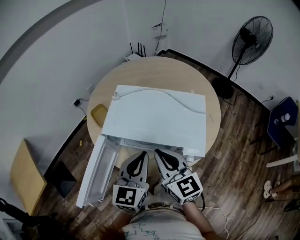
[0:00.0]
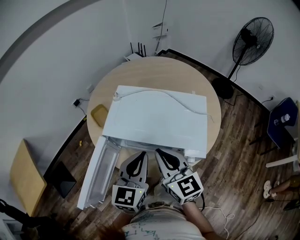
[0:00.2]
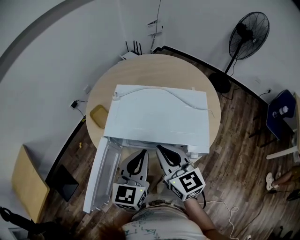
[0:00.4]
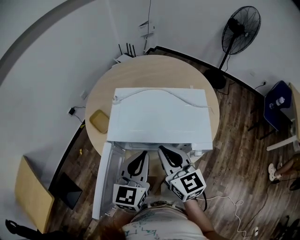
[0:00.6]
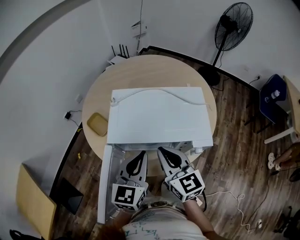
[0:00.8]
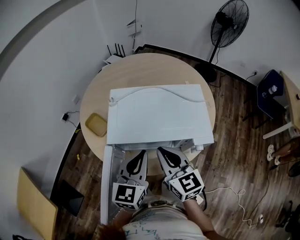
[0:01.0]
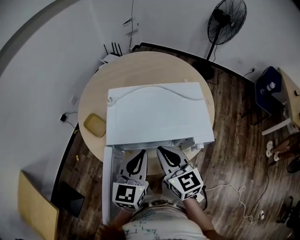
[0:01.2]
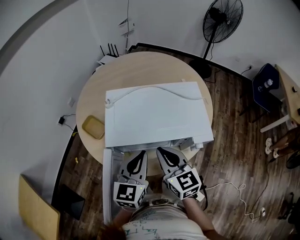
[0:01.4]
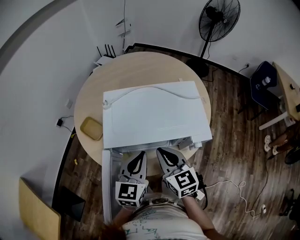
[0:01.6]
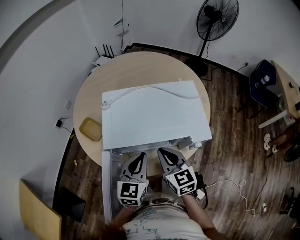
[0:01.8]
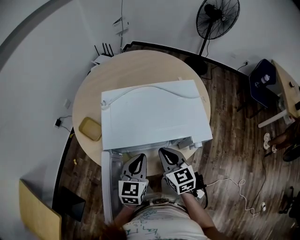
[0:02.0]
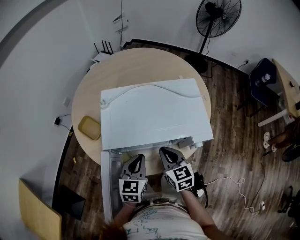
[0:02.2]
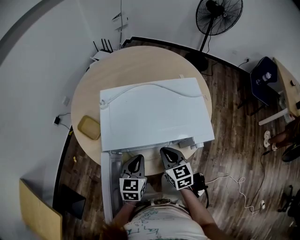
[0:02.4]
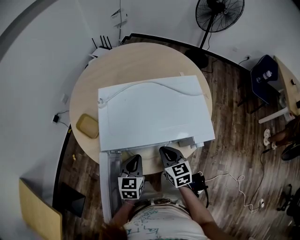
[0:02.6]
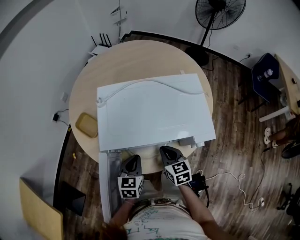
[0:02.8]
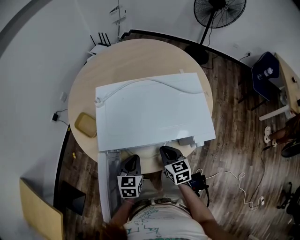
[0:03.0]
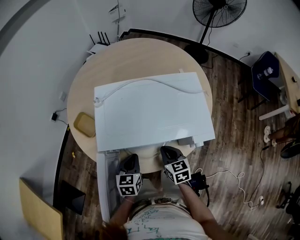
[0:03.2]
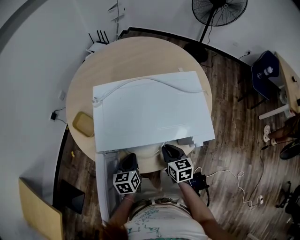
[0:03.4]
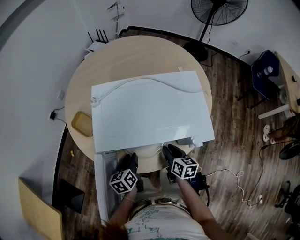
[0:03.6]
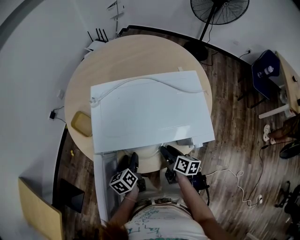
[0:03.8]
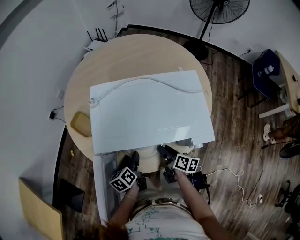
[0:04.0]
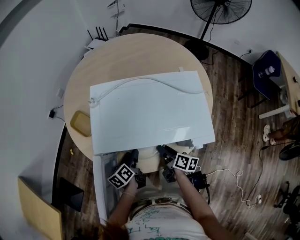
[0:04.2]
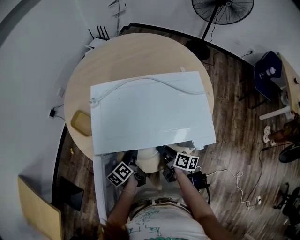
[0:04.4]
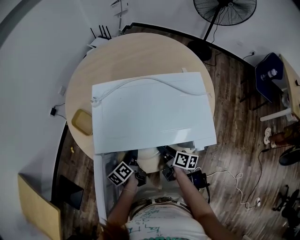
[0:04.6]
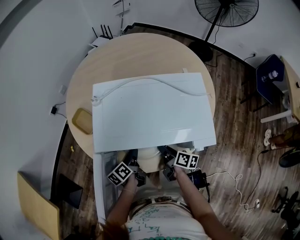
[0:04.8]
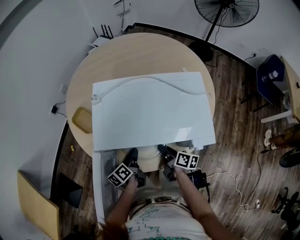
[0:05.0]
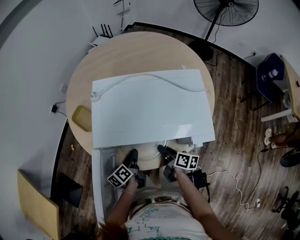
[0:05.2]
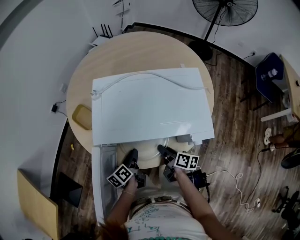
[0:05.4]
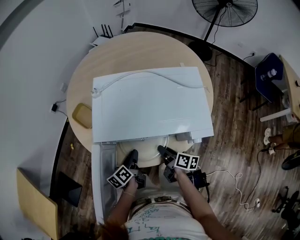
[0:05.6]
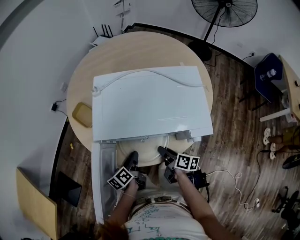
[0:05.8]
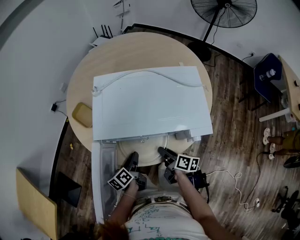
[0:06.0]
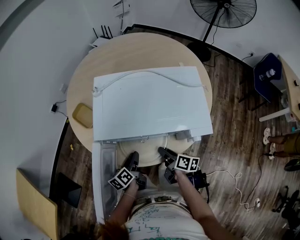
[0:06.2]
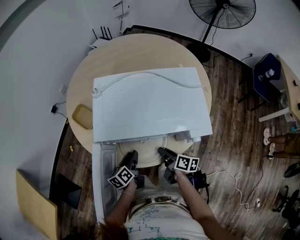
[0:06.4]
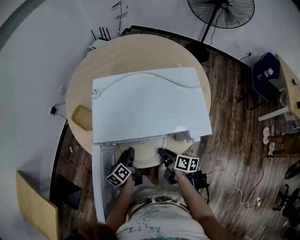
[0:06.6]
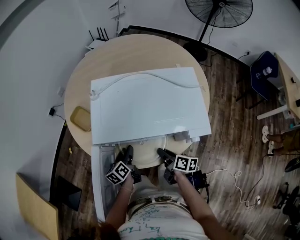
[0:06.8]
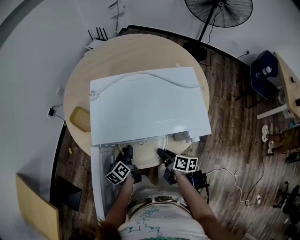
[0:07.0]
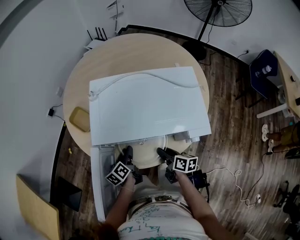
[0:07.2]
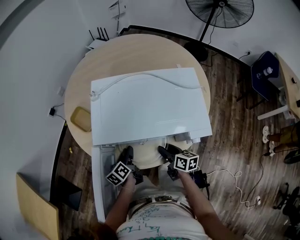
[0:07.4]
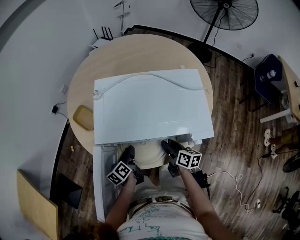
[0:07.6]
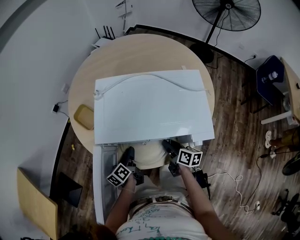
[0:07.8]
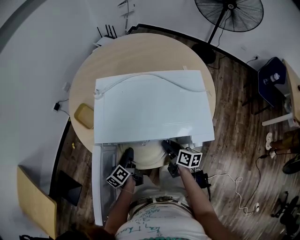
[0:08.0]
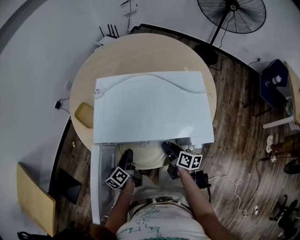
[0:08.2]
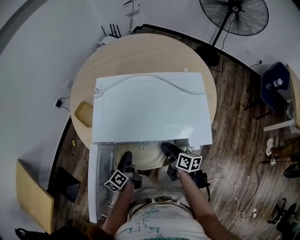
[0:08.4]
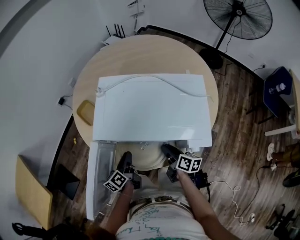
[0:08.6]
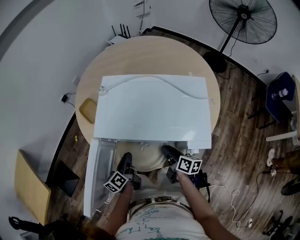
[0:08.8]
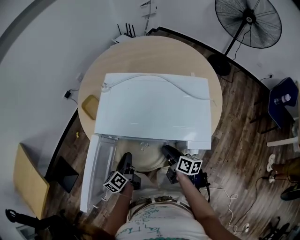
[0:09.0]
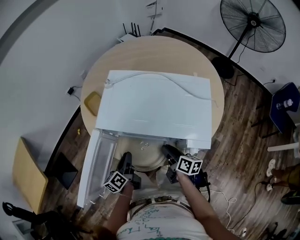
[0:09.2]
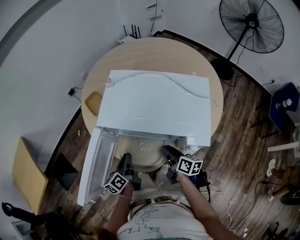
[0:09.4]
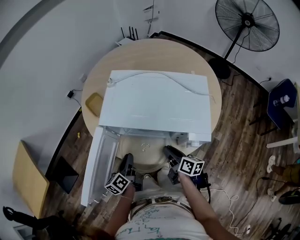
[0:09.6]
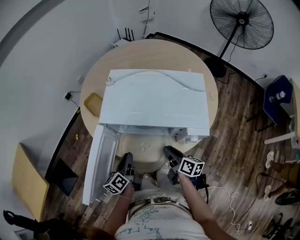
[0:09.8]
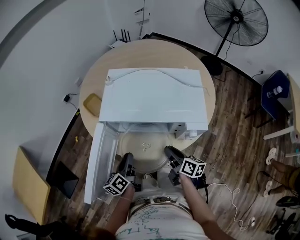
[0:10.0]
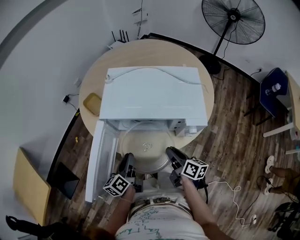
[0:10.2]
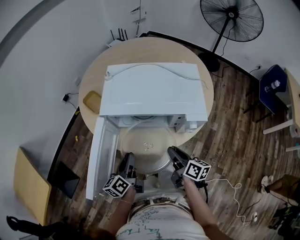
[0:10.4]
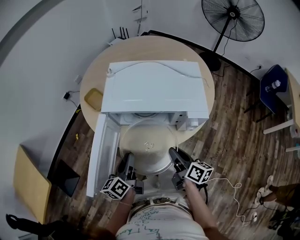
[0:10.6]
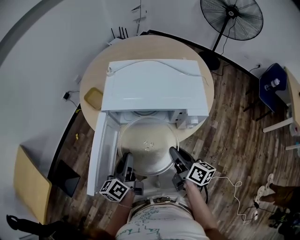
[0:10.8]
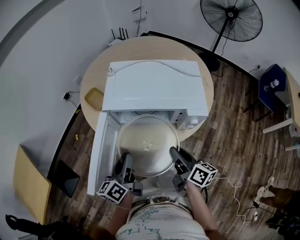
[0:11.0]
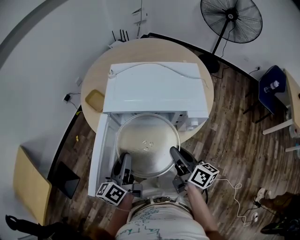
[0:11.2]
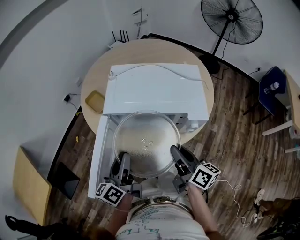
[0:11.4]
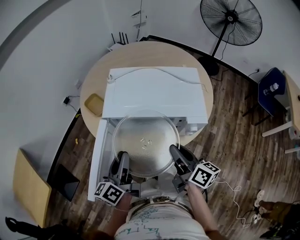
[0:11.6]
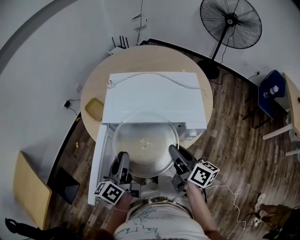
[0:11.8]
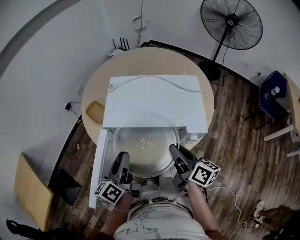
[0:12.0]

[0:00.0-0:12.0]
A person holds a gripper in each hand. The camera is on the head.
0:00.0 to 0:01.6: The left gripper goes some 5 cm to the left and downward; the right gripper shifts approximately 5 cm downward, and rotates about 20 degrees.
0:01.6 to 0:03.0: The grippers both shift downward by roughly 15 cm. The left gripper turns by about 20 degrees.
0:03.0 to 0:04.4: The grippers both shift downward by roughly 5 cm. The left gripper rolls counterclockwise, seen from behind, by approximately 60 degrees, and opens up, while the right gripper twists some 50 degrees clockwise, seen from behind, and opens.
0:04.4 to 0:06.0: Both grippers travel together backward, roughly 5 cm. The left gripper closes up.
0:06.0 to 0:07.6: The right gripper moves approximately 5 cm; the left gripper shifts roughly 5 cm forward.
0:07.6 to 0:09.0: The left gripper shifts approximately 5 cm backward.
0:09.0 to 0:10.4: The left gripper shifts roughly 10 cm upward and backward. Meanwhile the right gripper shifts approximately 15 cm backward and upward.
0:10.4 to 0:12.0: The two grippers go roughly 10 cm upward.

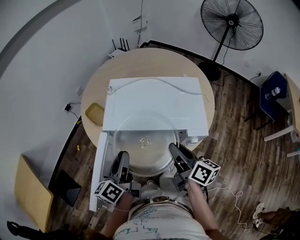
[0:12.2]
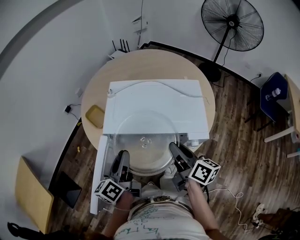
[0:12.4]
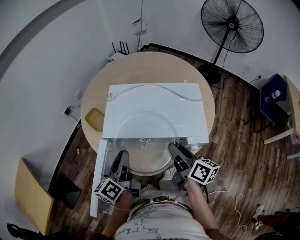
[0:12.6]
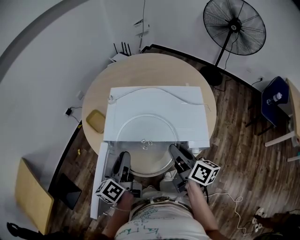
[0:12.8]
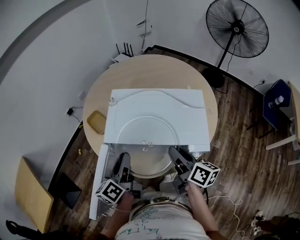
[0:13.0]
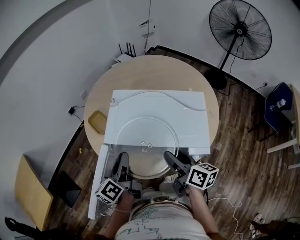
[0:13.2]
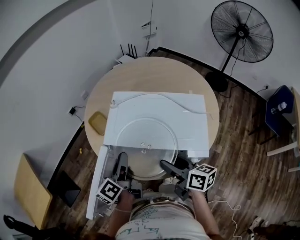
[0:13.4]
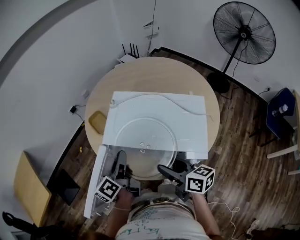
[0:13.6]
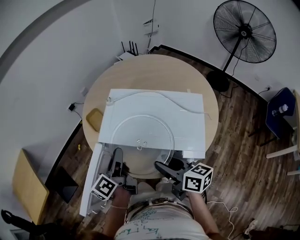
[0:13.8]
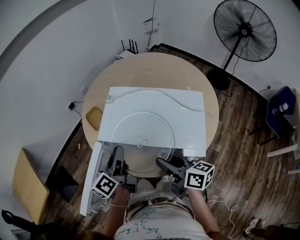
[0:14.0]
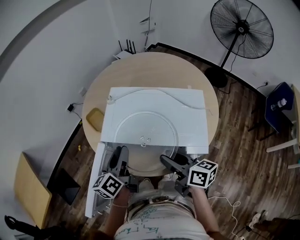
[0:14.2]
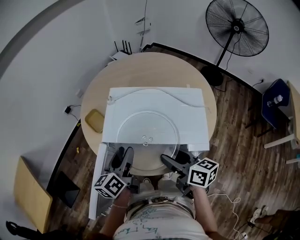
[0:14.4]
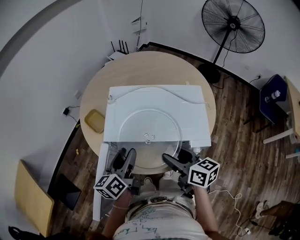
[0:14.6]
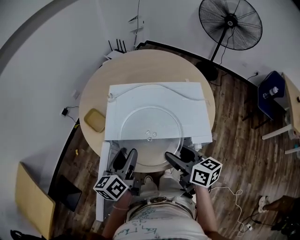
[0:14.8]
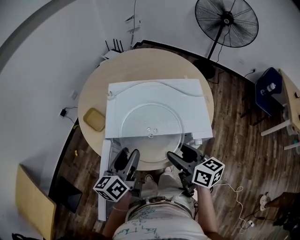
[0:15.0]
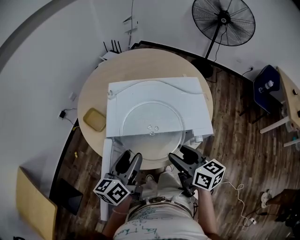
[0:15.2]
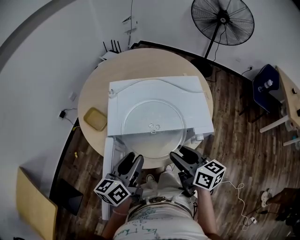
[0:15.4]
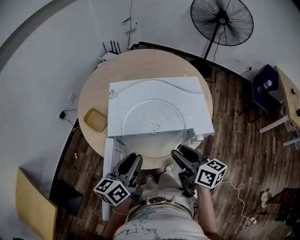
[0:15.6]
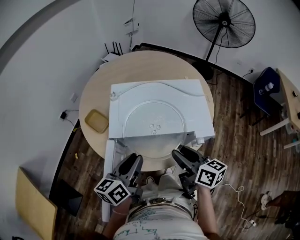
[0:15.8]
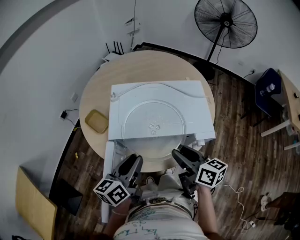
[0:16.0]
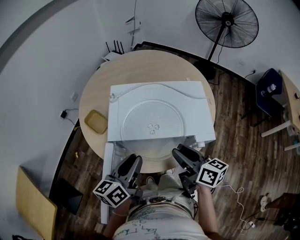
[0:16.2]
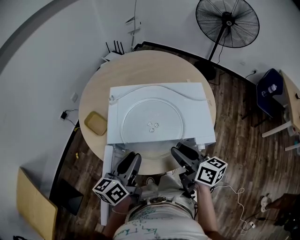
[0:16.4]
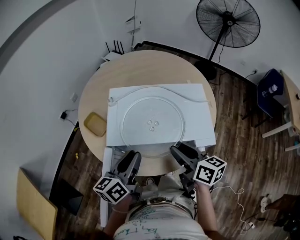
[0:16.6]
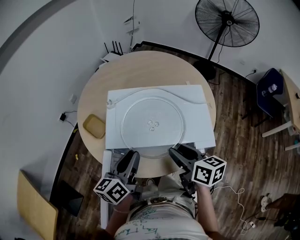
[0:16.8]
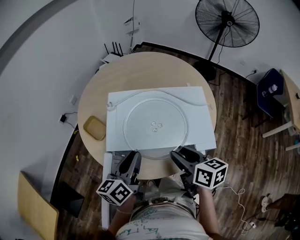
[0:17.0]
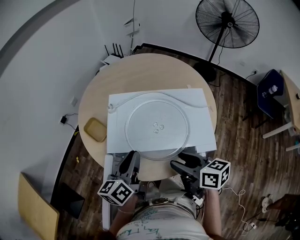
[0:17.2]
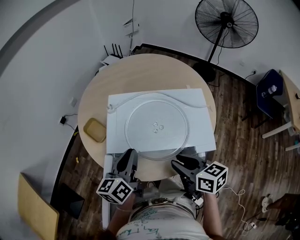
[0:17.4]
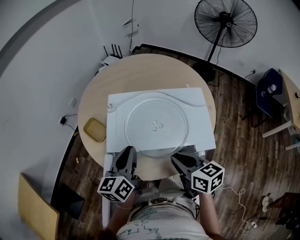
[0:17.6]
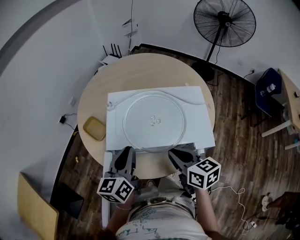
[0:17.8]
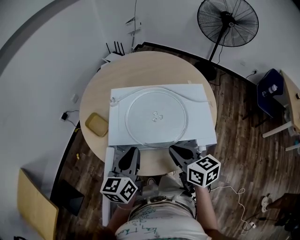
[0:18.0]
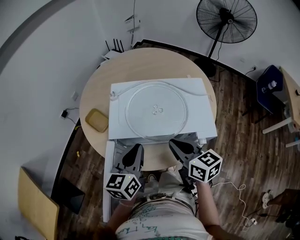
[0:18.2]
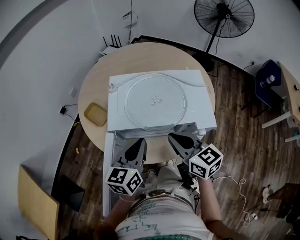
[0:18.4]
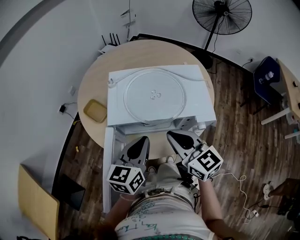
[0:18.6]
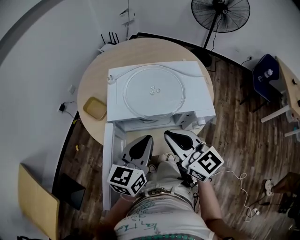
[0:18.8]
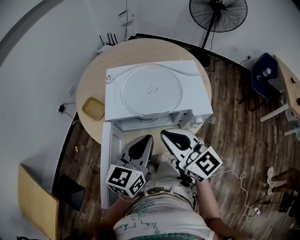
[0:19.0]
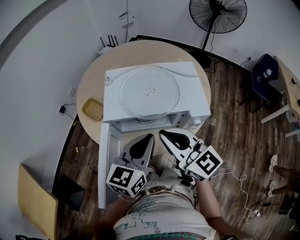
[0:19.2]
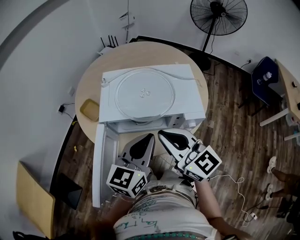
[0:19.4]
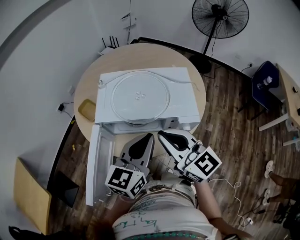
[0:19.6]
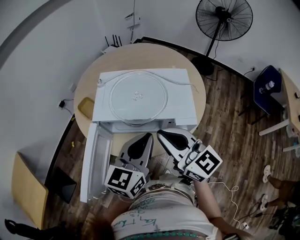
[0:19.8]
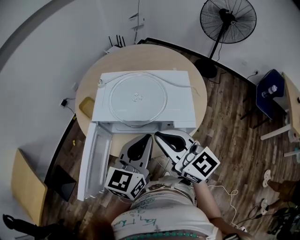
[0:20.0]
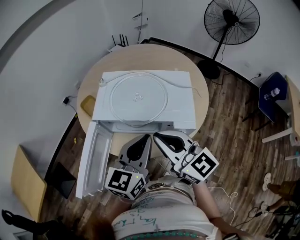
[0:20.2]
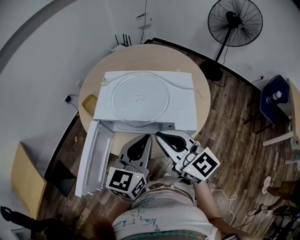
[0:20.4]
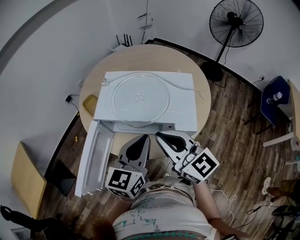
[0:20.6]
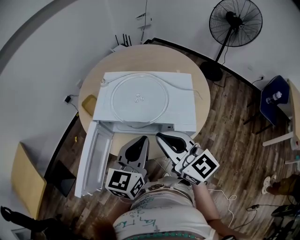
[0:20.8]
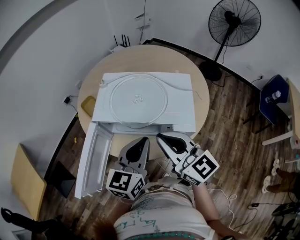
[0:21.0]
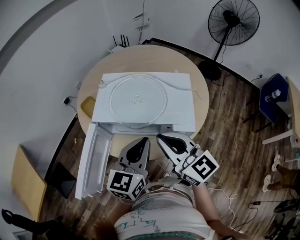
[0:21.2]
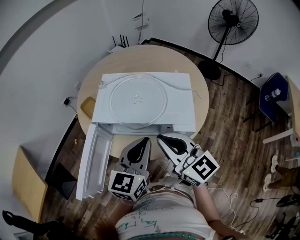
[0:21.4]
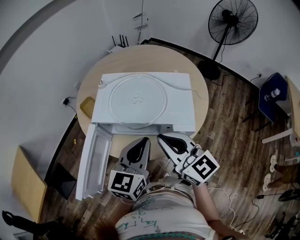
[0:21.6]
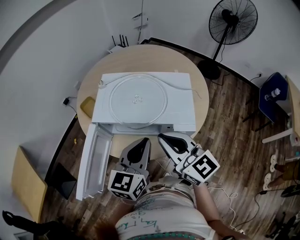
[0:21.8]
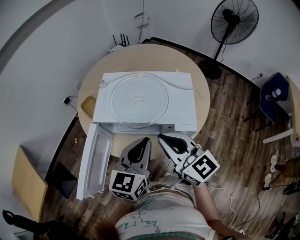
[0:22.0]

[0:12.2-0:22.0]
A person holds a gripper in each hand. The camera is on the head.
0:12.2 to 0:13.6: The right gripper changes its angle by approximately 30 degrees, and opens; the left gripper travels forward by roughly 5 cm, and swivels roughly 20 degrees.
0:13.6 to 0:15.0: The right gripper closes, then reopens, while the left gripper turns by some 40 degrees, and opens up.
0:15.0 to 0:16.4: The right gripper closes its fingers; the left gripper closes up.
0:16.4 to 0:17.8: The right gripper closes up.
0:17.8 to 0:19.2: The left gripper heads backward and to the right, covering approximately 15 cm, and rotates some 20 degrees; the right gripper goes approximately 10 cm upward and backward, and swivels roughly 40 degrees.
0:19.2 to 0:20.6: Both grippers move to the right, approximately 5 cm.
0:20.6 to 0:22.0: The grippers stay close to where they were, moving slightly.

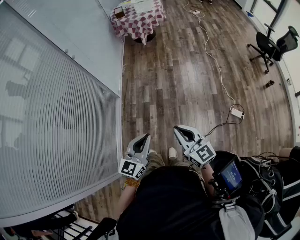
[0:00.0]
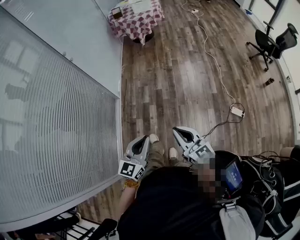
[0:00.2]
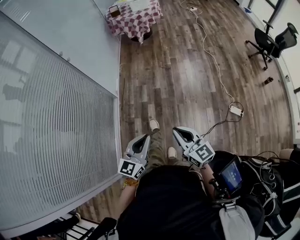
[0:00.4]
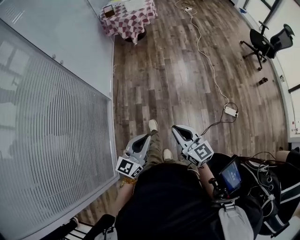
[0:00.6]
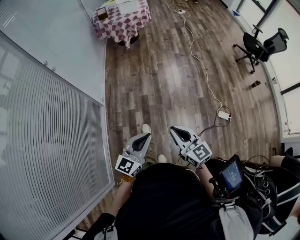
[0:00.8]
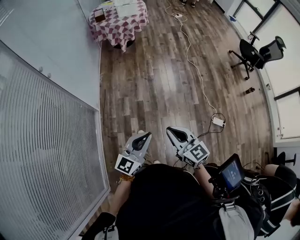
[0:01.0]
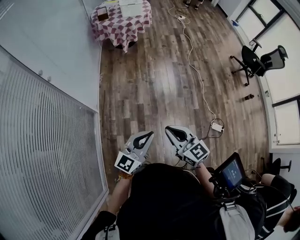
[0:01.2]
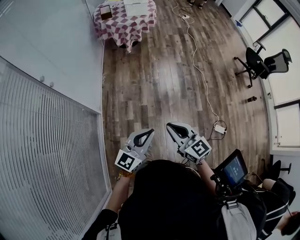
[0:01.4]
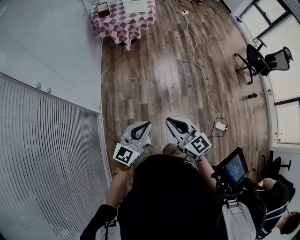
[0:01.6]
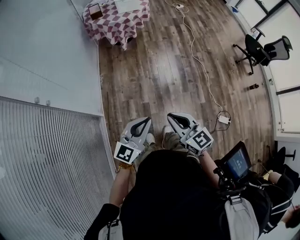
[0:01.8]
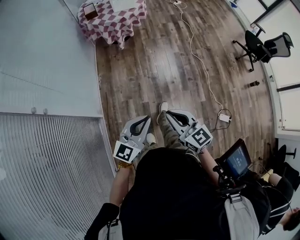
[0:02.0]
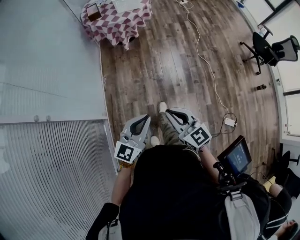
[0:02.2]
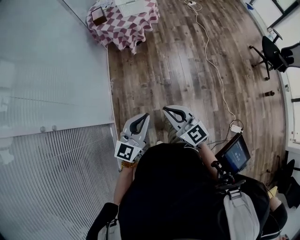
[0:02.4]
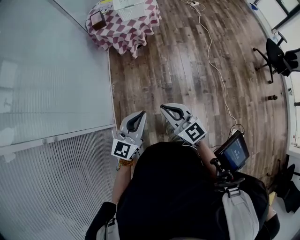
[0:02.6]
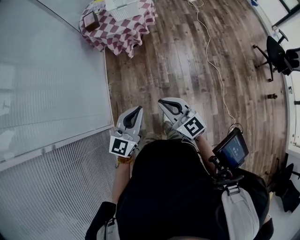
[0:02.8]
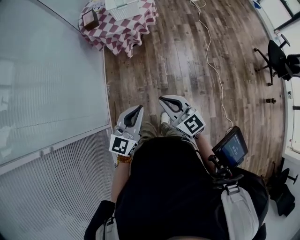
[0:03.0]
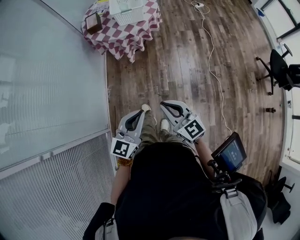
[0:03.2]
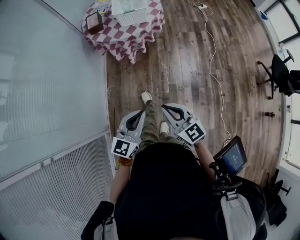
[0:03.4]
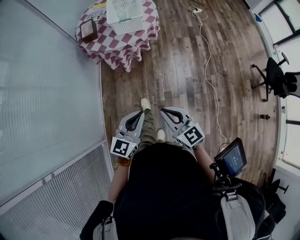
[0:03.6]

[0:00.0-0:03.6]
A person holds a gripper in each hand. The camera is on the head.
0:00.0 to 0:01.8: Both grippers are carried forward, approximately 50 cm.
0:01.8 to 0:03.6: The two grippers travel together, forward, about 50 cm.
